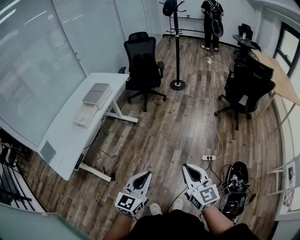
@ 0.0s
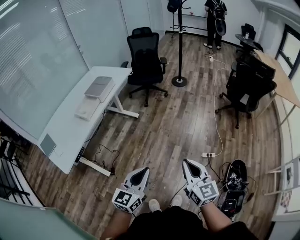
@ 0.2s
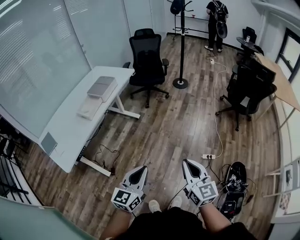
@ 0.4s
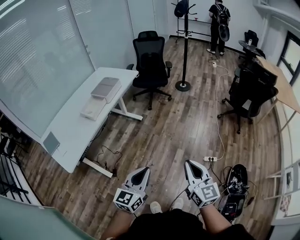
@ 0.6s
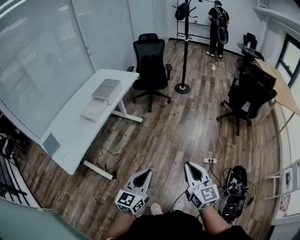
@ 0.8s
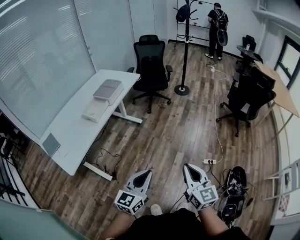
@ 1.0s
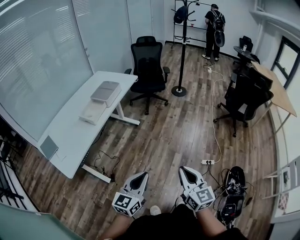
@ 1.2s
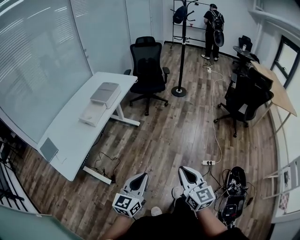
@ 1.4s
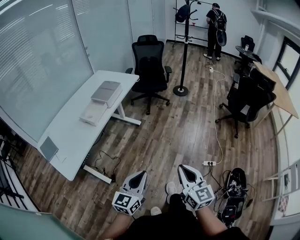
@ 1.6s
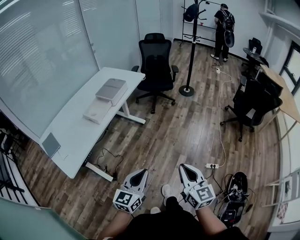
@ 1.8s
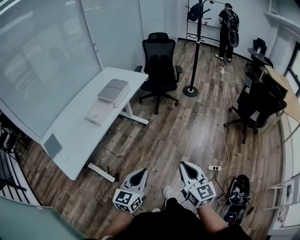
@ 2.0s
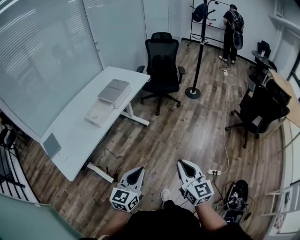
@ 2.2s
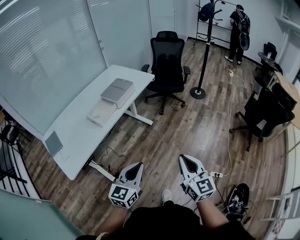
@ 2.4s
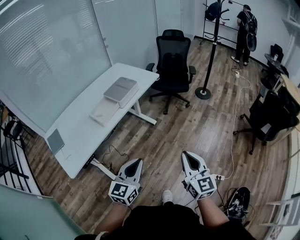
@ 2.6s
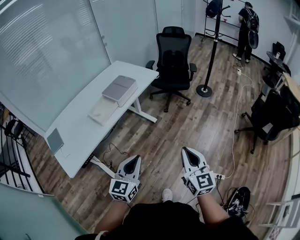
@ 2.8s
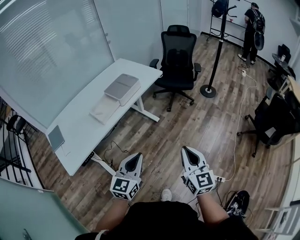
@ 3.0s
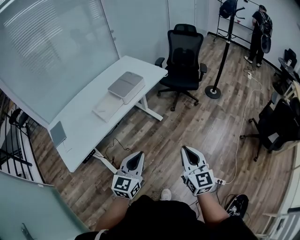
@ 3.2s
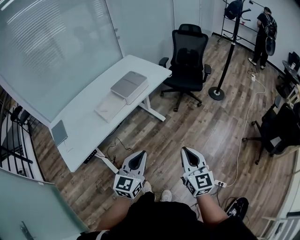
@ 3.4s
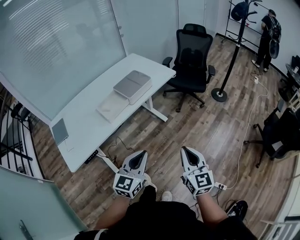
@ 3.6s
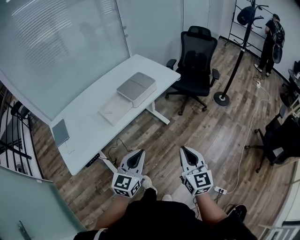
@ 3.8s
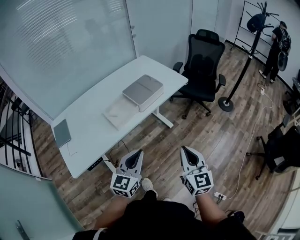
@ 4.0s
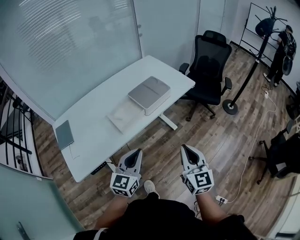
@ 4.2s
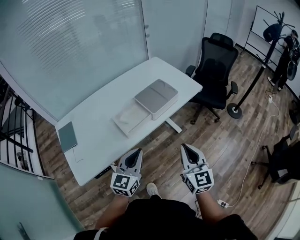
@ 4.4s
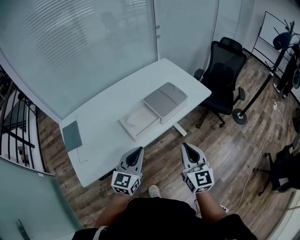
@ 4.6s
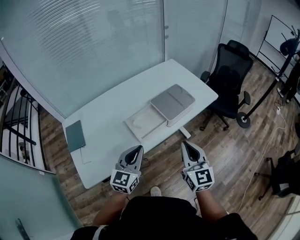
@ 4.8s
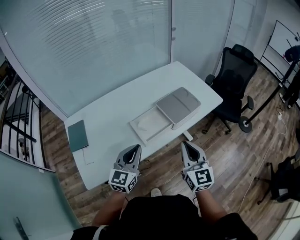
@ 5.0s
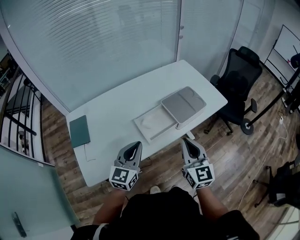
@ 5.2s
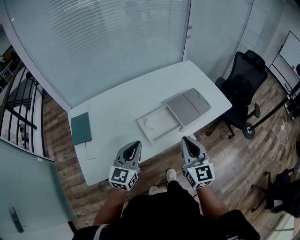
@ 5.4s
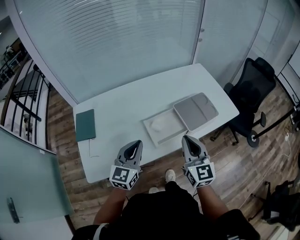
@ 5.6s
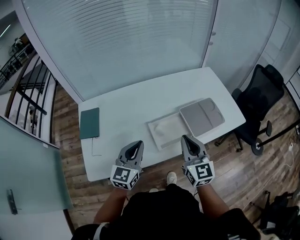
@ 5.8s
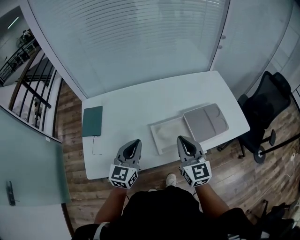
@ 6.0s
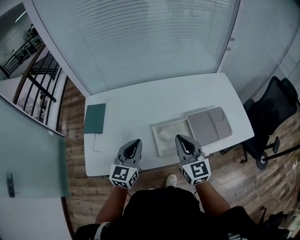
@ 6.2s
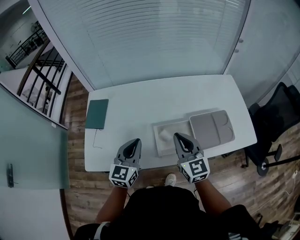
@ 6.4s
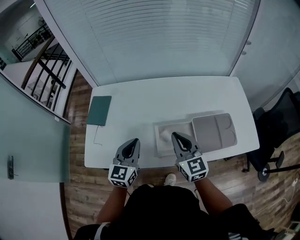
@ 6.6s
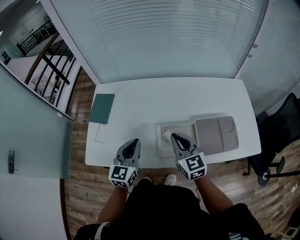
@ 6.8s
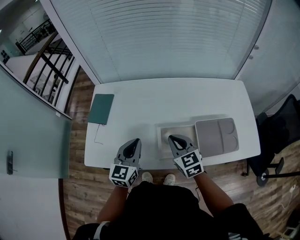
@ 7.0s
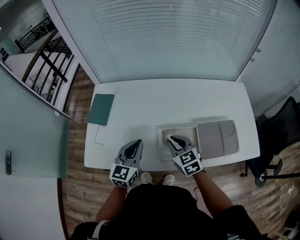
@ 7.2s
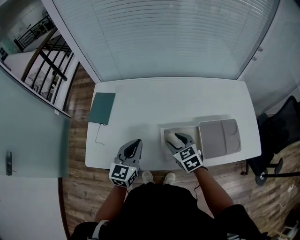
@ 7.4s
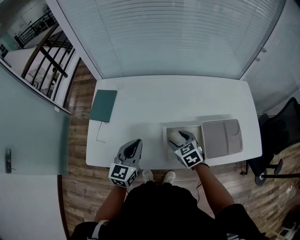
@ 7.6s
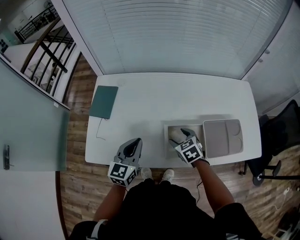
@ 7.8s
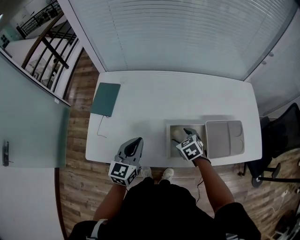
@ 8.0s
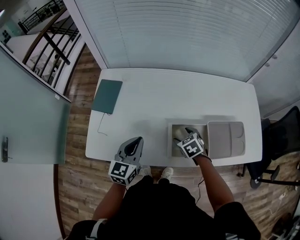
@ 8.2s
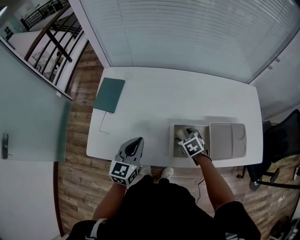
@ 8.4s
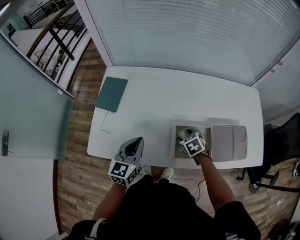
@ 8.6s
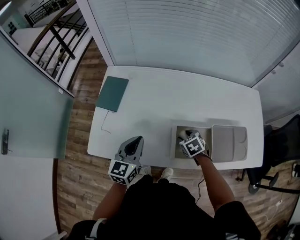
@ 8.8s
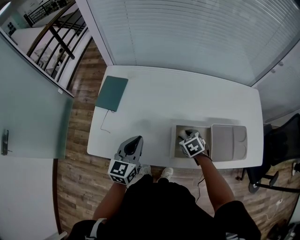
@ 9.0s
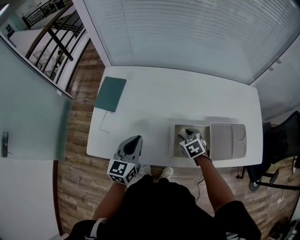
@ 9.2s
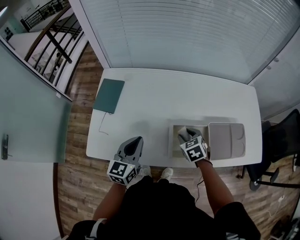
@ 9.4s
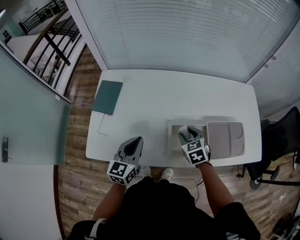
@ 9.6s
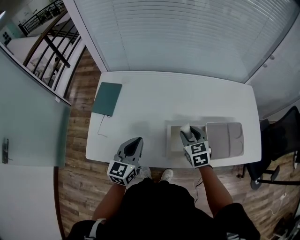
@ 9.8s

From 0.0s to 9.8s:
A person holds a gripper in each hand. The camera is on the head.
From 0.0s to 1.4s: The two grippers go some 10 cm to the left.
From 1.4s to 2.8s: Both grippers travel together forward, some 20 cm. The left gripper changes its angle by some 20 degrees.
From 2.8s to 4.2s: Both grippers move forward and to the left, about 25 cm.
From 4.2s to 5.6s: The right gripper goes roughly 30 cm forward and to the left. The left gripper moves to the left and forward, about 25 cm.
From 5.6s to 7.0s: The right gripper shifts by approximately 20 cm, and swivels approximately 40 degrees; the left gripper moves approximately 10 cm, and turns by about 30 degrees.
From 7.0s to 8.4s: The left gripper shifts some 5 cm to the left. Meanwhile the right gripper shifts about 15 cm downward, angles its fingers downward, by roughly 40 degrees, and opens its fingers.
From 8.4s to 9.8s: The right gripper goes some 10 cm upward, changes its angle by some 30 degrees, and closes its fingers.

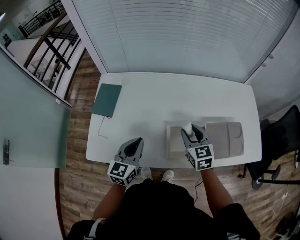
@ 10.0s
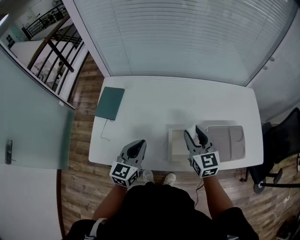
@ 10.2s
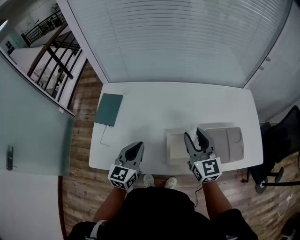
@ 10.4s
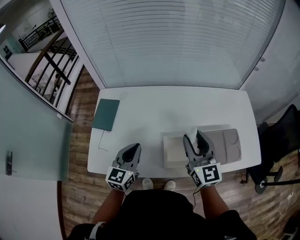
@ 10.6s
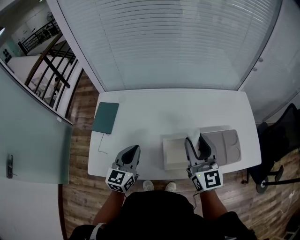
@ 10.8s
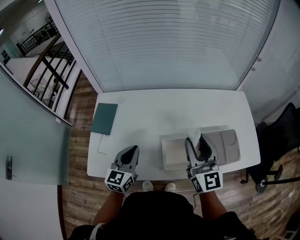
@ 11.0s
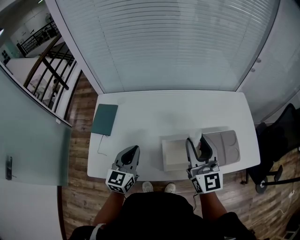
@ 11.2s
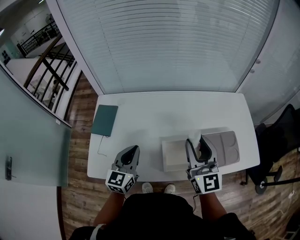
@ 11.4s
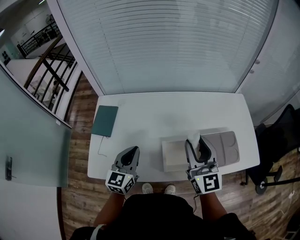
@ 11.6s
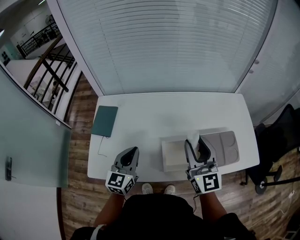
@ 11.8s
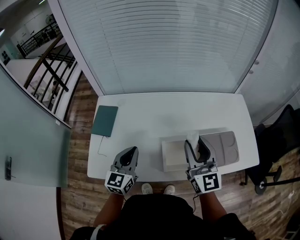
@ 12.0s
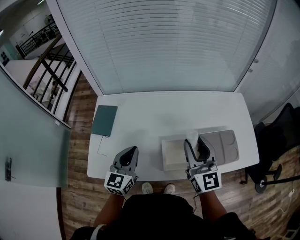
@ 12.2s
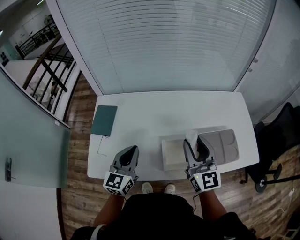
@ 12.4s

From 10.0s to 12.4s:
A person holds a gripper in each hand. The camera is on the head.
From 10.0s to 11.2s: The right gripper goes roughly 20 cm upward, and tilts its fingers some 40 degrees upward.
From 11.2s to 12.4s: The grippers stay close to where they were, moving slightly.

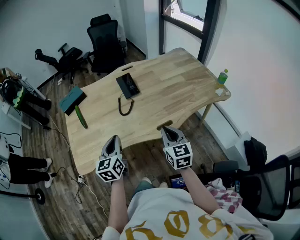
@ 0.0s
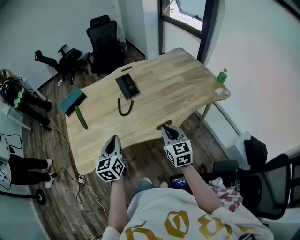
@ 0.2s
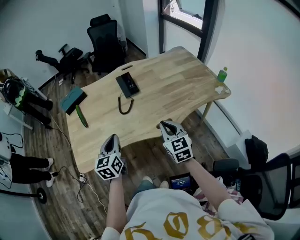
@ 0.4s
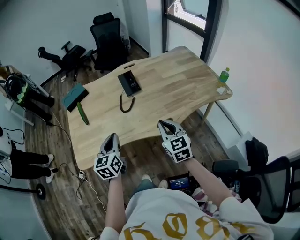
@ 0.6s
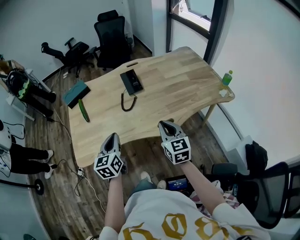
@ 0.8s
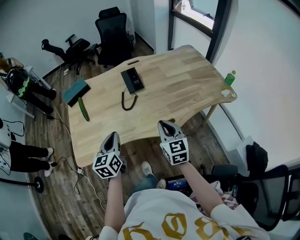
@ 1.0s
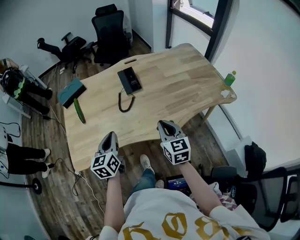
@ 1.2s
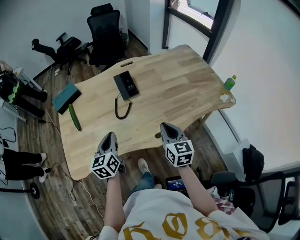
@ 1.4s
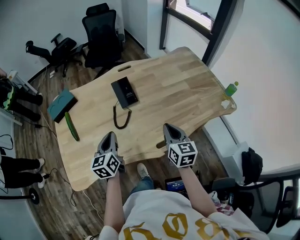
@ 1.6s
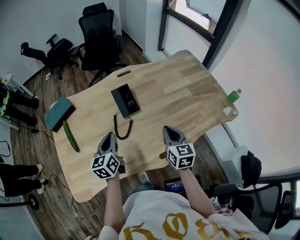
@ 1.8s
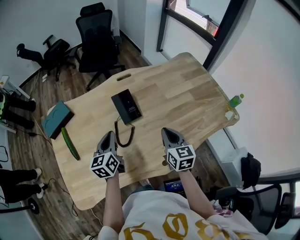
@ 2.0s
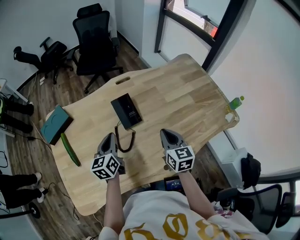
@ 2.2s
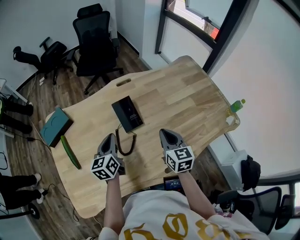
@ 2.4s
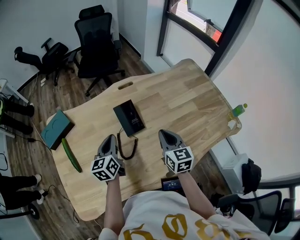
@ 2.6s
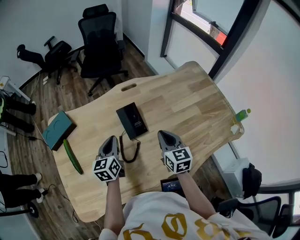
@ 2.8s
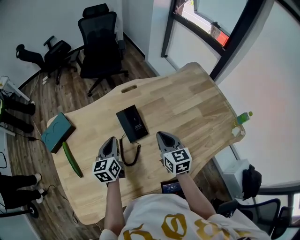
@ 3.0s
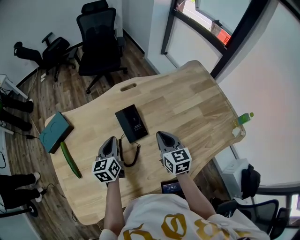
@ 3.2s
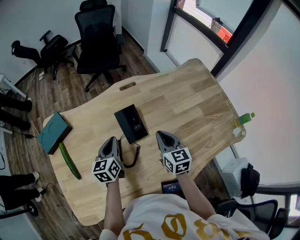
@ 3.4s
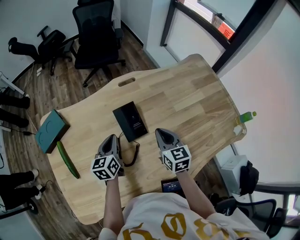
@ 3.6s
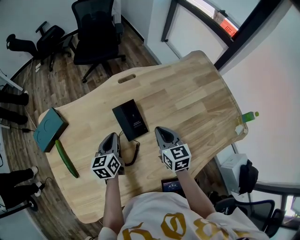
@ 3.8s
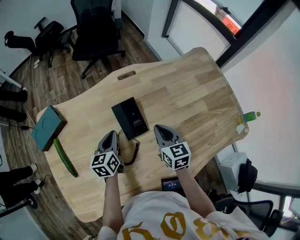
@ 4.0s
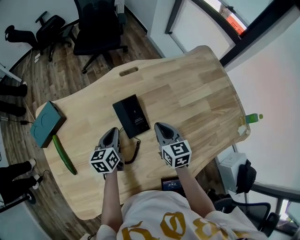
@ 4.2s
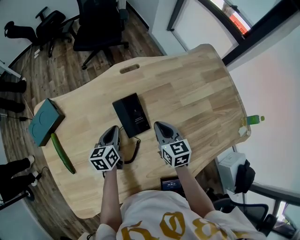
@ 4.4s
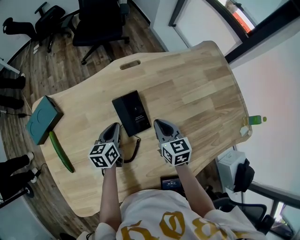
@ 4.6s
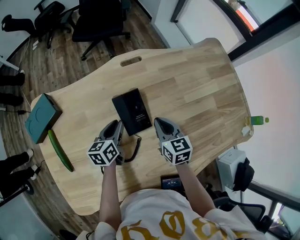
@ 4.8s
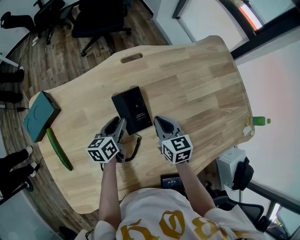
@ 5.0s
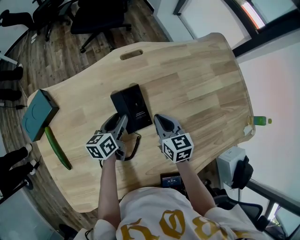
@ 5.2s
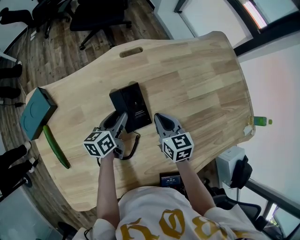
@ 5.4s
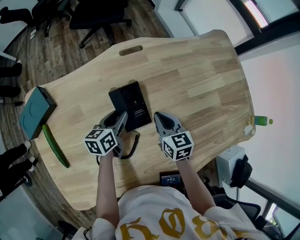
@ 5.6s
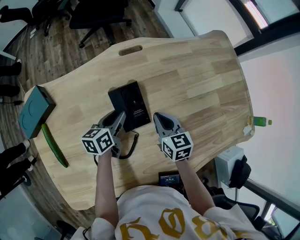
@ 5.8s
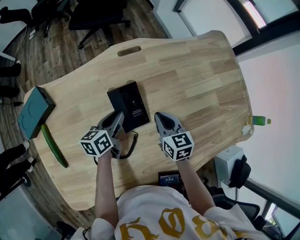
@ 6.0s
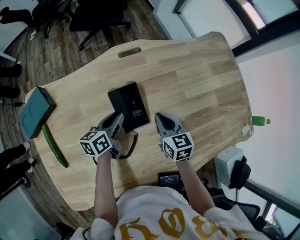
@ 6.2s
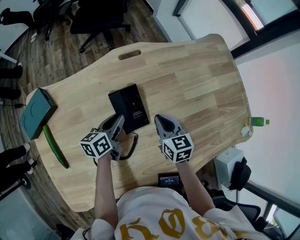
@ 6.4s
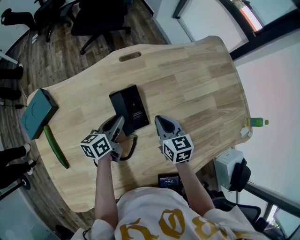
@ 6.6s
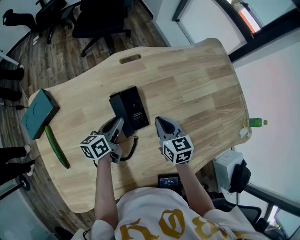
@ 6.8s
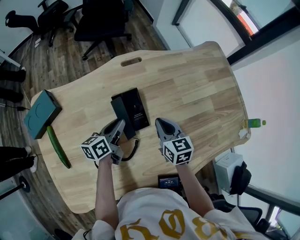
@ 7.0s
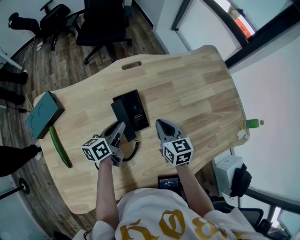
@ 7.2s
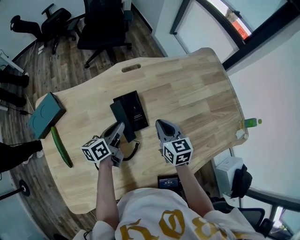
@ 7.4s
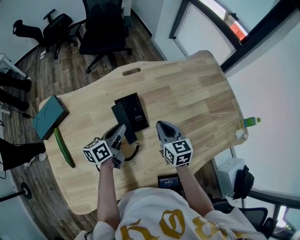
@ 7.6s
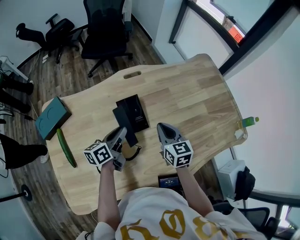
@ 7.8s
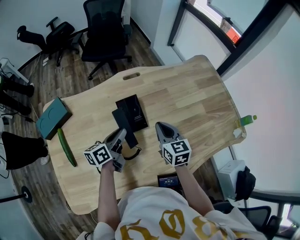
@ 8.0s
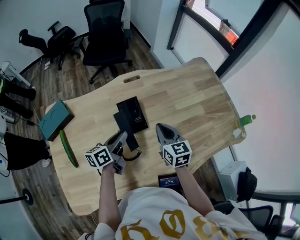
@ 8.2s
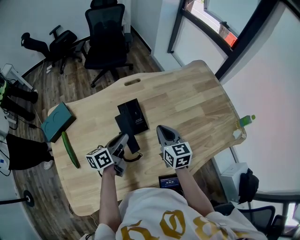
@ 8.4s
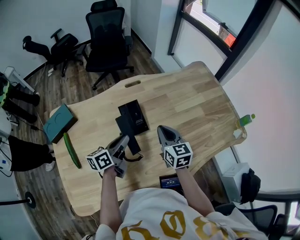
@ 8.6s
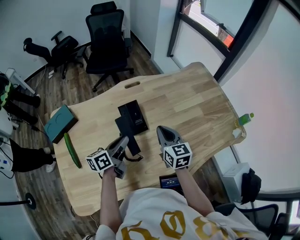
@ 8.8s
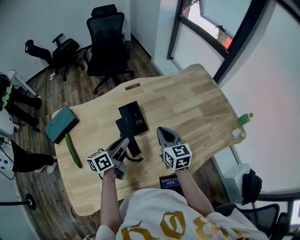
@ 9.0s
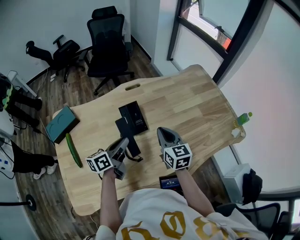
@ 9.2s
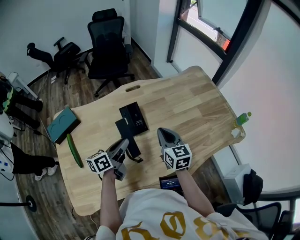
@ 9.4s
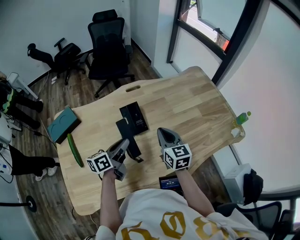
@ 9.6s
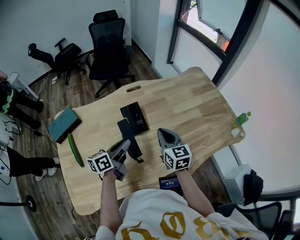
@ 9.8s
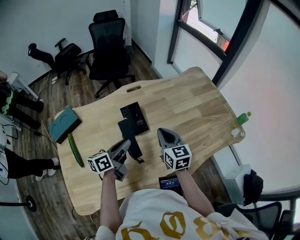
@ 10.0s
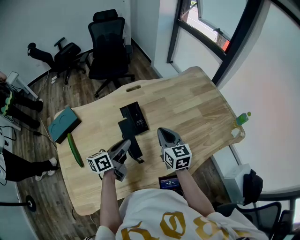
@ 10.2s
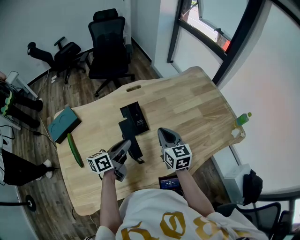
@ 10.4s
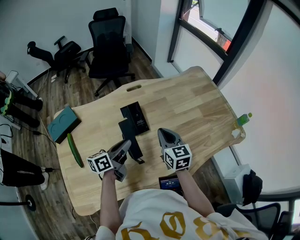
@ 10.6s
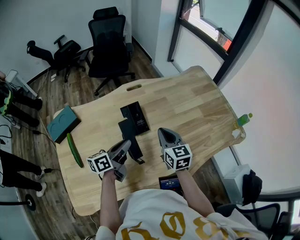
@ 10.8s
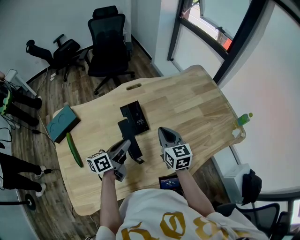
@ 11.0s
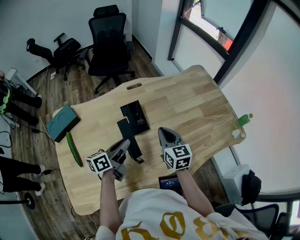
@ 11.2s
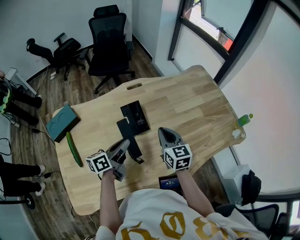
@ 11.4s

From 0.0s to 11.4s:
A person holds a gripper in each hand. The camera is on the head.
From 0.0s to 1.4s: The two grippers go about 10 cm forward.
From 1.4s to 2.8s: Both grippers travel together forward, approximately 25 cm.
From 2.8s to 4.2s: Both grippers travel together downward and forward, about 10 cm.
From 4.2s to 5.6s: The right gripper goes some 5 cm downward. The left gripper shifts by approximately 5 cm, and opens.
From 5.6s to 7.2s: The right gripper shifts by about 5 cm; the left gripper heads upward, covering roughly 5 cm.
From 7.2s to 8.6s: The right gripper shifts about 5 cm upward. The left gripper heads upward and backward, covering about 10 cm.
From 8.6s to 11.4s: The grippers stay close to where they were, moving slightly.
